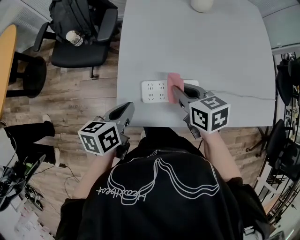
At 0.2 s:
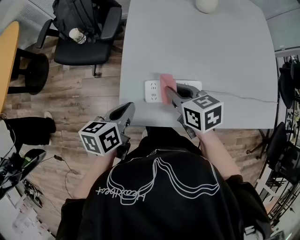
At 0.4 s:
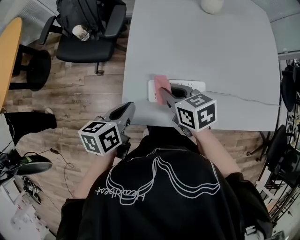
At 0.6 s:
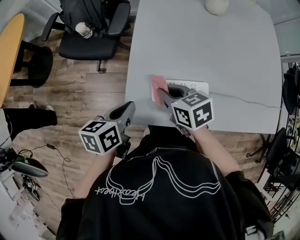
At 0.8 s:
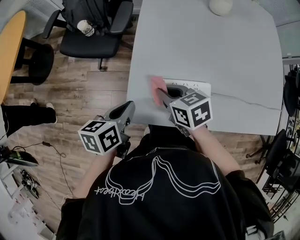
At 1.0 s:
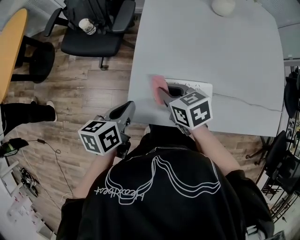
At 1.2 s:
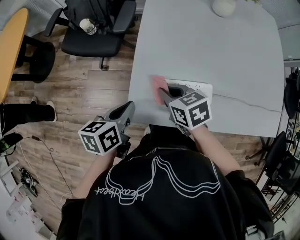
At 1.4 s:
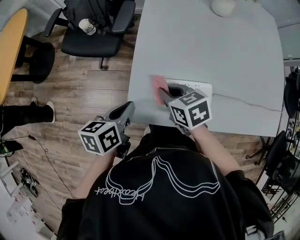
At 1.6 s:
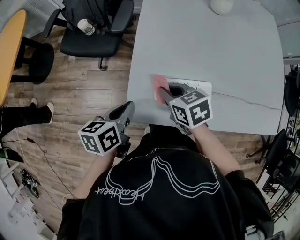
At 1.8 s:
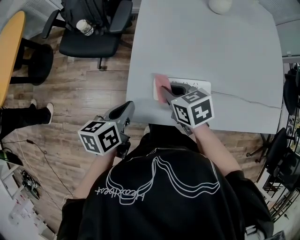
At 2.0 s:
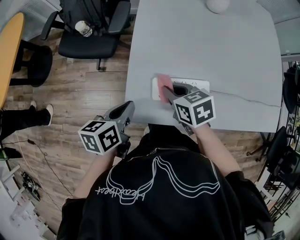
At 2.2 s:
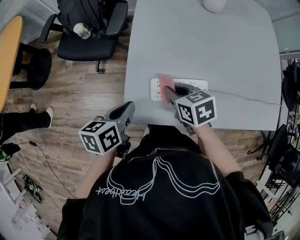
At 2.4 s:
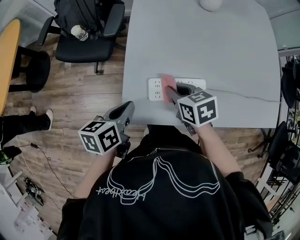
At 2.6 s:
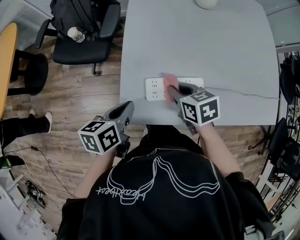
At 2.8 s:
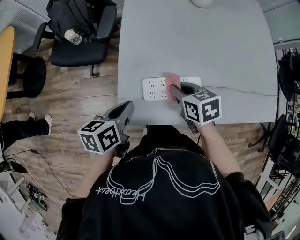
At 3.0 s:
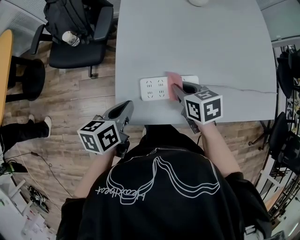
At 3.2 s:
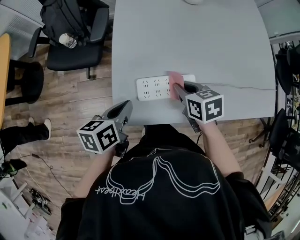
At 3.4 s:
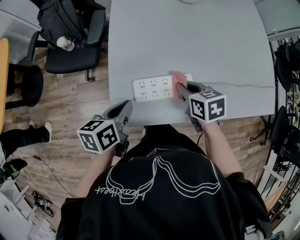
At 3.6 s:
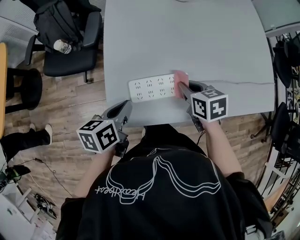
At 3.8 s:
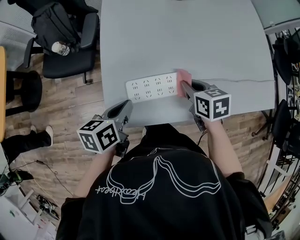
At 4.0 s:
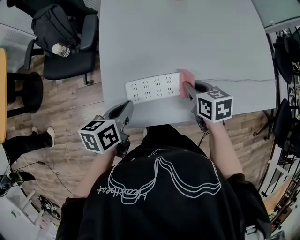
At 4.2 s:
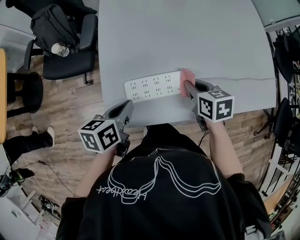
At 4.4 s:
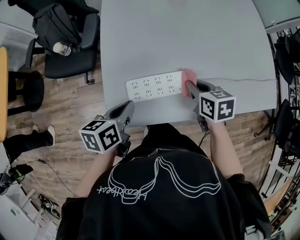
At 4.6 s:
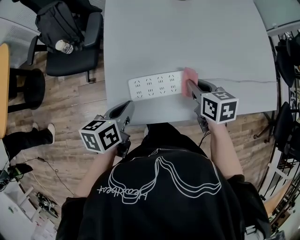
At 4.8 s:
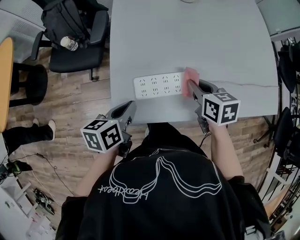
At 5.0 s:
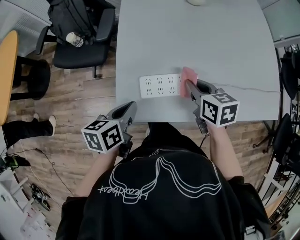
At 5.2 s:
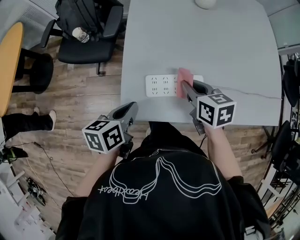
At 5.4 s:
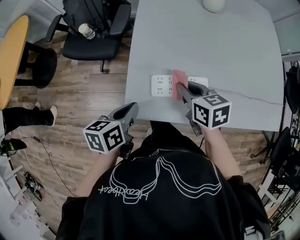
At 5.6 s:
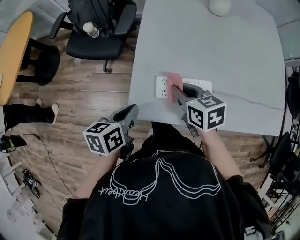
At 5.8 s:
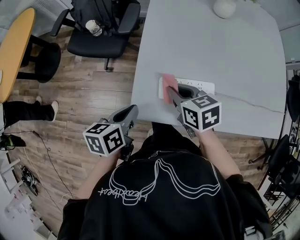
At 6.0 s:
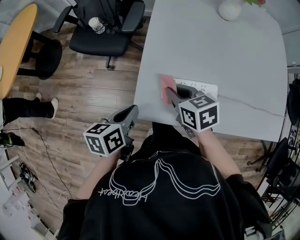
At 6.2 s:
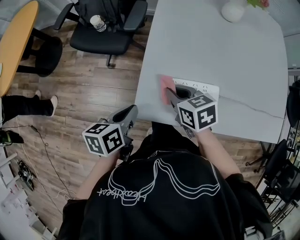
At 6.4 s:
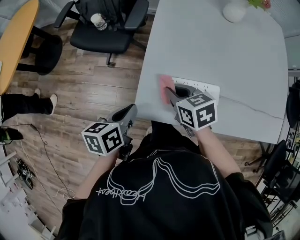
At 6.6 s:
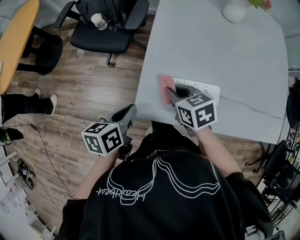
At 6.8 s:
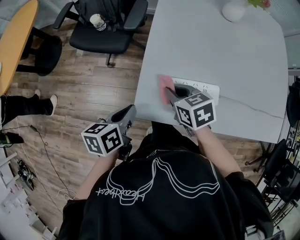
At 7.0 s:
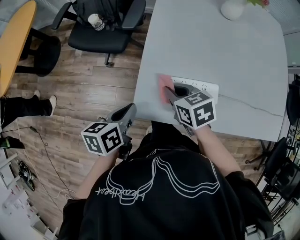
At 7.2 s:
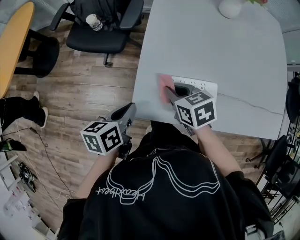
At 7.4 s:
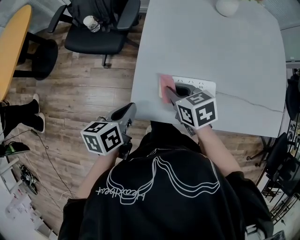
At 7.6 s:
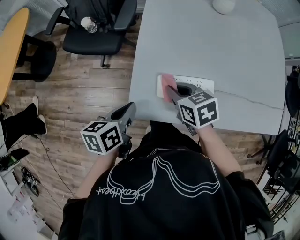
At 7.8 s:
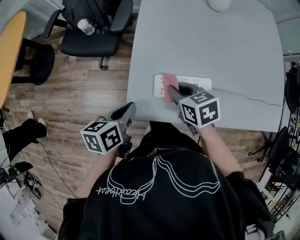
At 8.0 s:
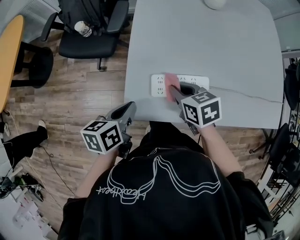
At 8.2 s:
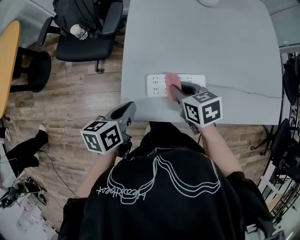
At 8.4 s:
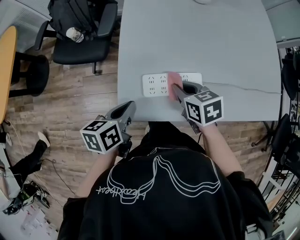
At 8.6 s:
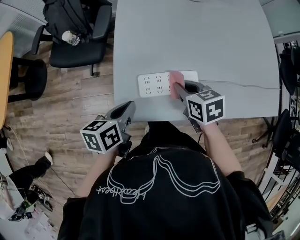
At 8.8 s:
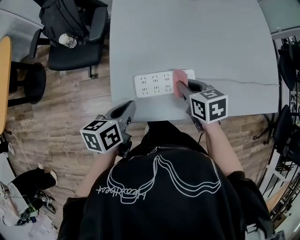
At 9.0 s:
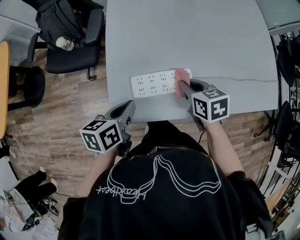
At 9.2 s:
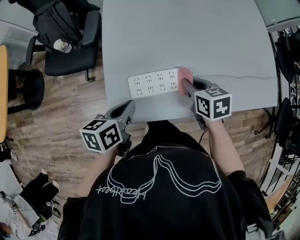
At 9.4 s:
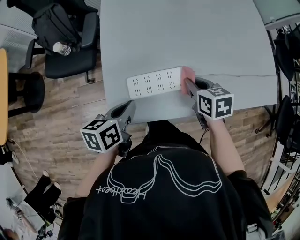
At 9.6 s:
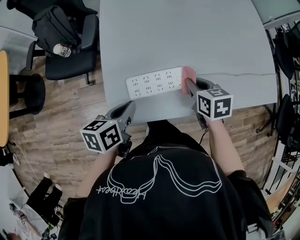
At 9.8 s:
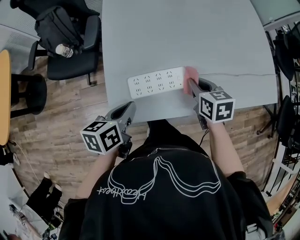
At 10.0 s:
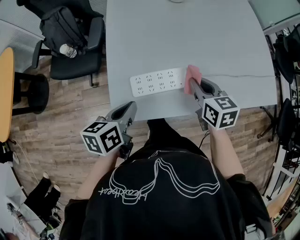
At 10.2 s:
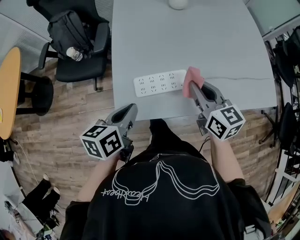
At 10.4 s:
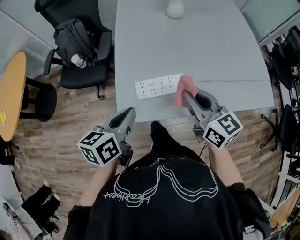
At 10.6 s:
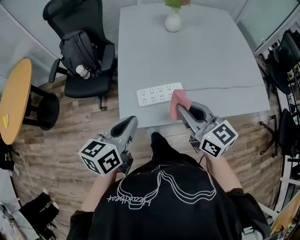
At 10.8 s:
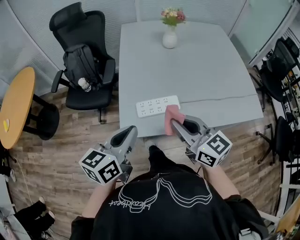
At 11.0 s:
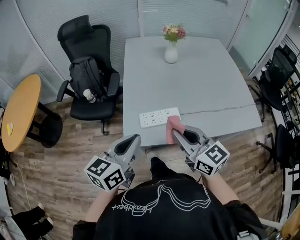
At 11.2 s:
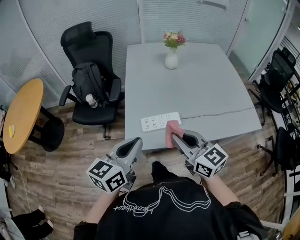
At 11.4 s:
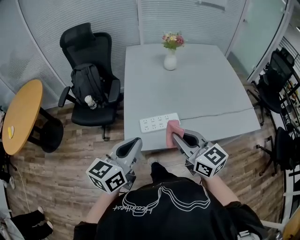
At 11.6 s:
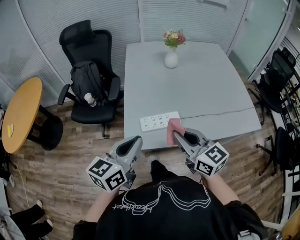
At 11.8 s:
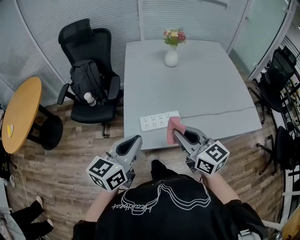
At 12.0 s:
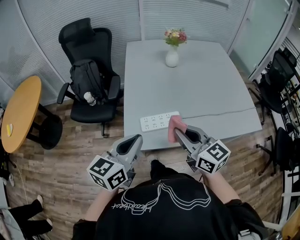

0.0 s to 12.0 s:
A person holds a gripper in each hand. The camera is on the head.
0.0 to 1.6 s: The right gripper is displaced to the left by roughly 10 cm.
1.6 to 3.0 s: The right gripper travels to the right by some 10 cm.
3.0 to 4.4 s: The left gripper moves to the right, about 5 cm. Meanwhile the right gripper shifts approximately 10 cm to the right.
4.4 to 6.0 s: The right gripper moves to the left, some 20 cm, and turns by some 30 degrees; the left gripper moves to the left, about 10 cm.
6.0 to 7.6 s: The grippers make only small movements.
7.6 to 9.0 s: The right gripper moves to the right, roughly 15 cm; the left gripper heads to the right, covering about 10 cm.
9.0 to 10.4 s: The grippers both shift upward and backward by some 15 cm. The right gripper points its fingers roughly 40 degrees further upward.
10.4 to 12.0 s: The left gripper moves upward, about 10 cm, and rotates about 20 degrees. Meanwhile the right gripper shifts some 10 cm upward and backward.

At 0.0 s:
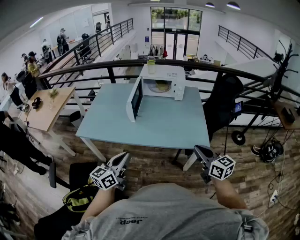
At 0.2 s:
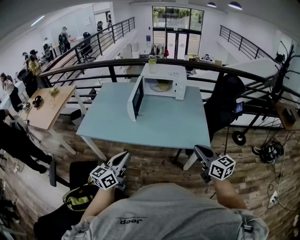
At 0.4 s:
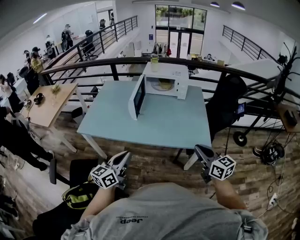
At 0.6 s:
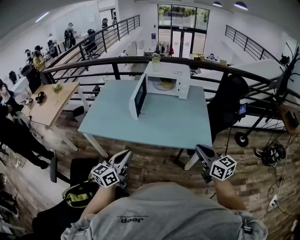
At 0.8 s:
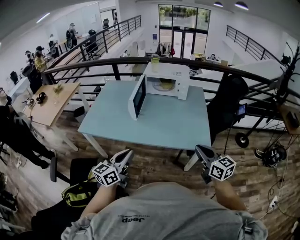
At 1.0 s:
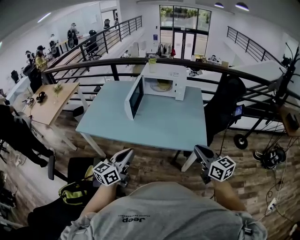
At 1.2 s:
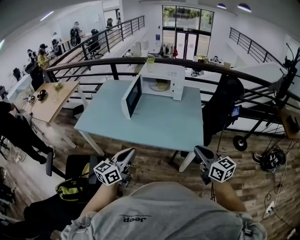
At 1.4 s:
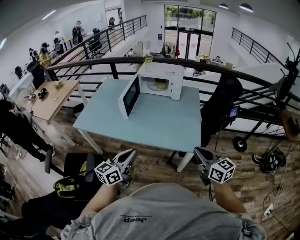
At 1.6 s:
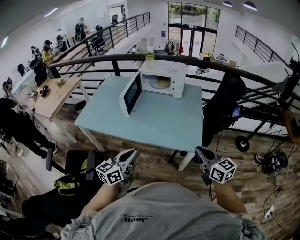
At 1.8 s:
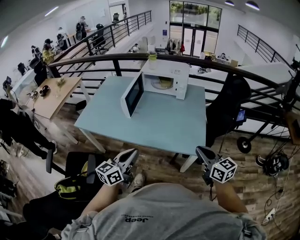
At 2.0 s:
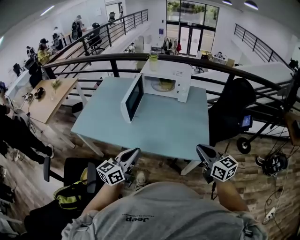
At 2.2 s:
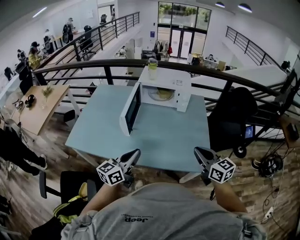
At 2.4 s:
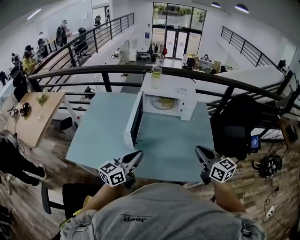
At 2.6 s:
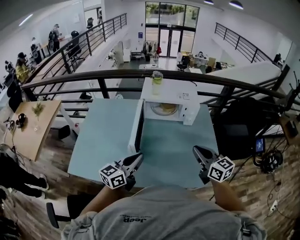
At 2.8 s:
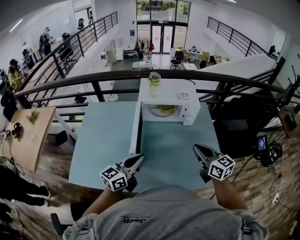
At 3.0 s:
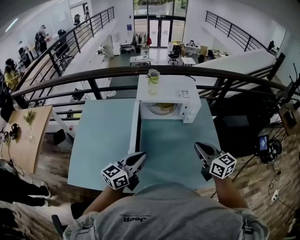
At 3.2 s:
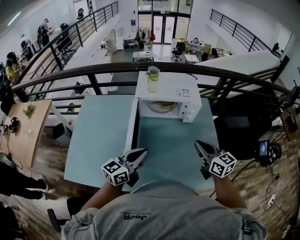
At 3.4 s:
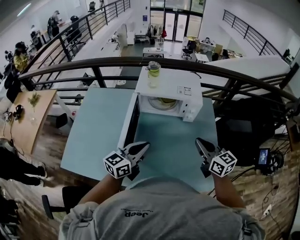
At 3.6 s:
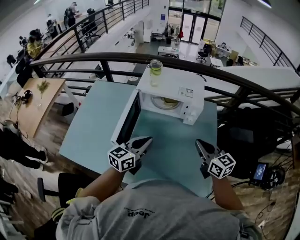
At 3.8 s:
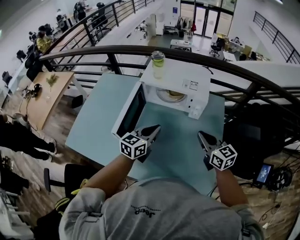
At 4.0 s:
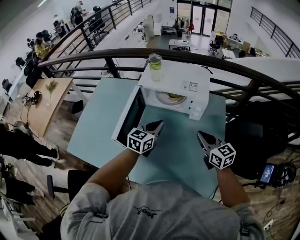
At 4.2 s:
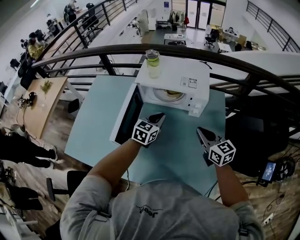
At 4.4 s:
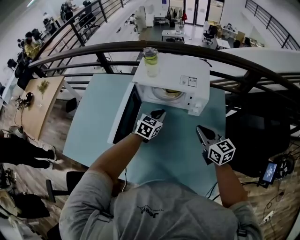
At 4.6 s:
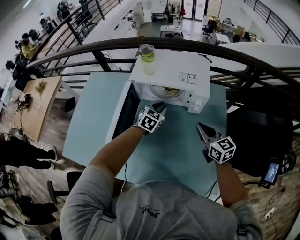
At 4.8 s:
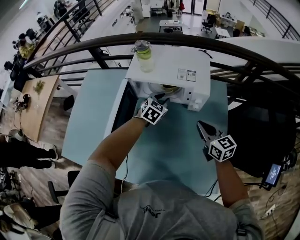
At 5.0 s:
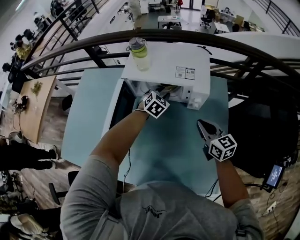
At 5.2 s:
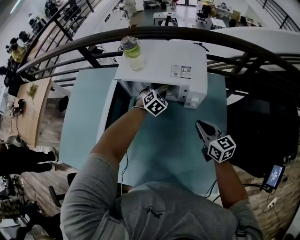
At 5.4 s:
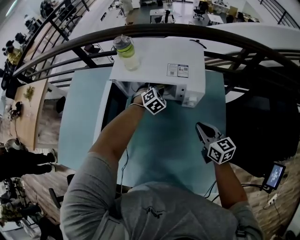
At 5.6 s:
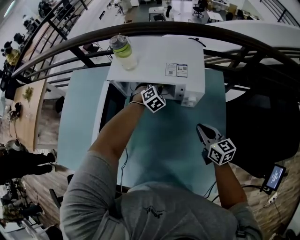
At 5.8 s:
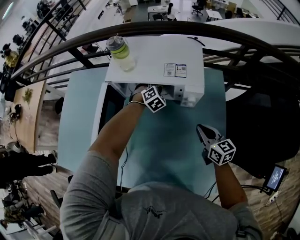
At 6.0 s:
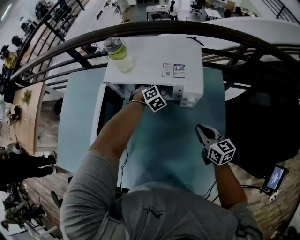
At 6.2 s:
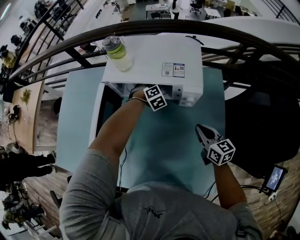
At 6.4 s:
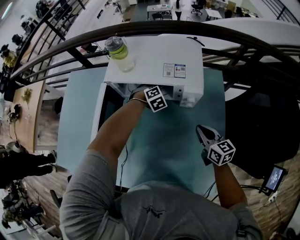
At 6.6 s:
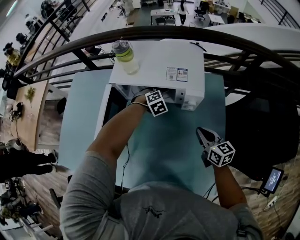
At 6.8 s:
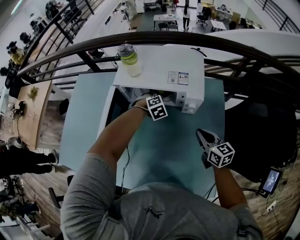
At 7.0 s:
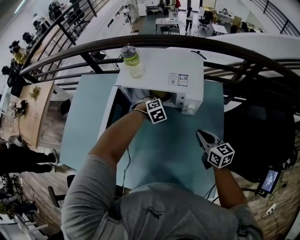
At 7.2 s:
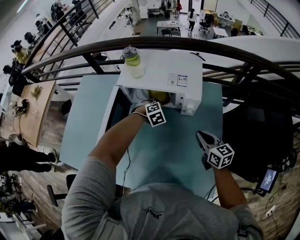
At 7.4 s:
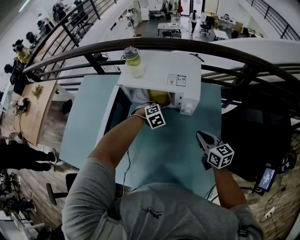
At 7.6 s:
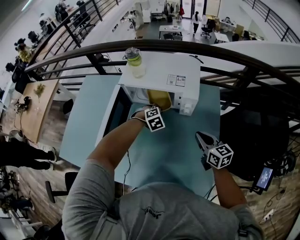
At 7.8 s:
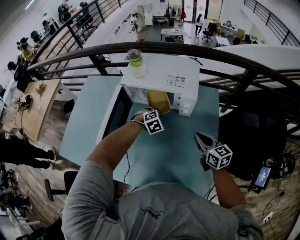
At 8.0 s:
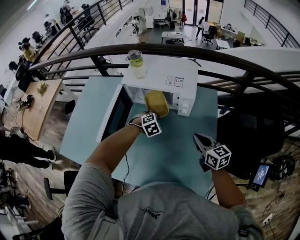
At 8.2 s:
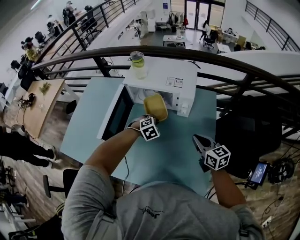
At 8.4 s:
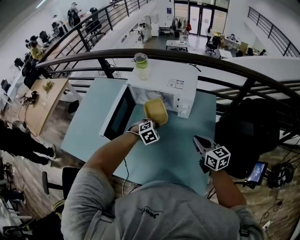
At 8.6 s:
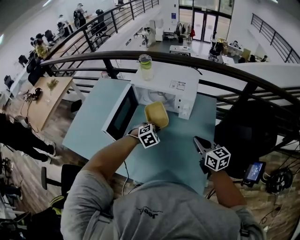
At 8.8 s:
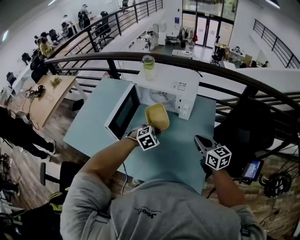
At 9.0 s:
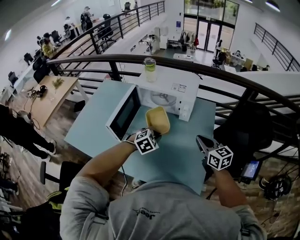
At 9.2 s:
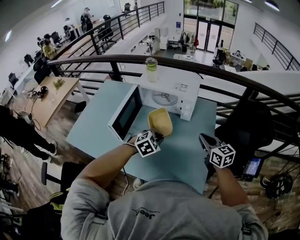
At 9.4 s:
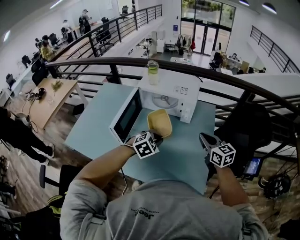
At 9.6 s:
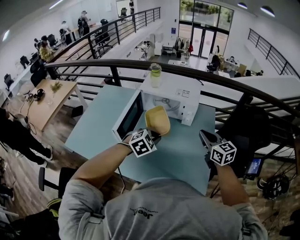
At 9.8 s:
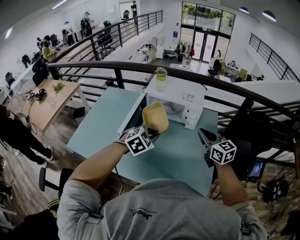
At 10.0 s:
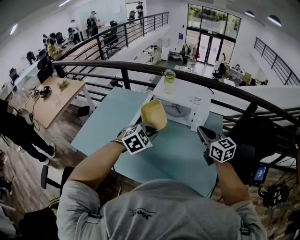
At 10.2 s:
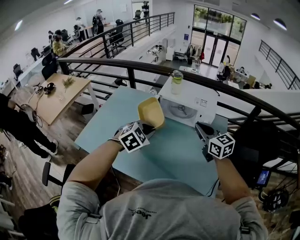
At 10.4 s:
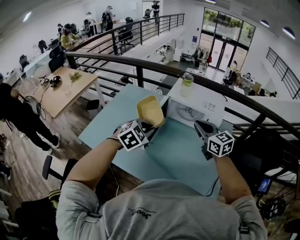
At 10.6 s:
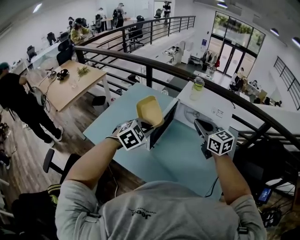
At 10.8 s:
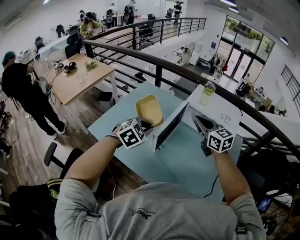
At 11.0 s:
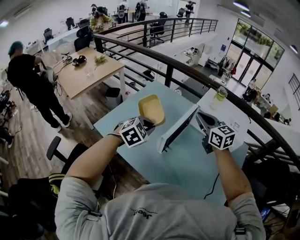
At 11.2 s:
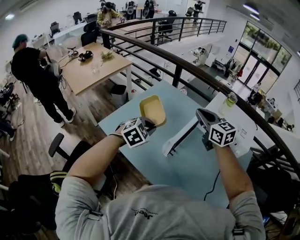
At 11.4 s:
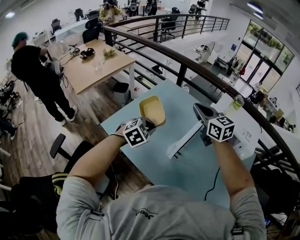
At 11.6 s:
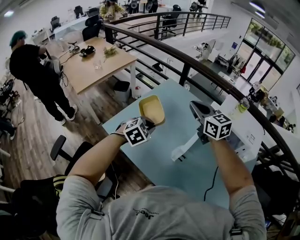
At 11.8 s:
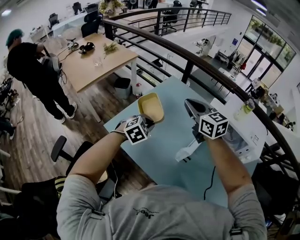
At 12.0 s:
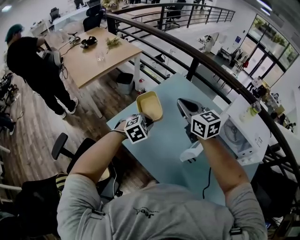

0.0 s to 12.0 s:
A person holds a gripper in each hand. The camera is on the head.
0.0 to 1.6 s: Both grippers move to the right, about 15 cm.
1.6 to 3.0 s: The pair of grippers is taken forward and to the left, roughly 40 cm. The left gripper changes its angle by some 20 degrees.
3.0 to 4.4 s: The left gripper moves forward, to the right and downward, roughly 30 cm, and points its fingers roughly 30 degrees further downward. Meanwhile the right gripper shifts some 20 cm forward, downward and to the right.
4.4 to 6.0 s: The left gripper moves forward, downward and to the right, roughly 20 cm, swivels about 50 degrees, and opens. The right gripper goes approximately 10 cm downward and to the right.
6.0 to 7.6 s: The right gripper travels upward by some 5 cm; the left gripper goes some 15 cm backward, and closes up.
7.6 to 9.0 s: The left gripper travels backward and upward by approximately 25 cm, while the right gripper travels backward and upward by about 10 cm.
9.0 to 10.4 s: The two grippers go some 25 cm to the left and upward.
10.4 to 12.0 s: Both grippers move to the left and forward, approximately 40 cm. The right gripper changes its angle by about 20 degrees. Meanwhile the left gripper changes its angle by some 20 degrees.
